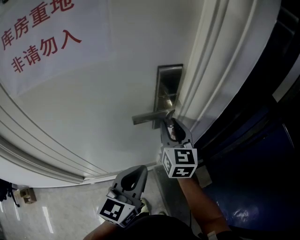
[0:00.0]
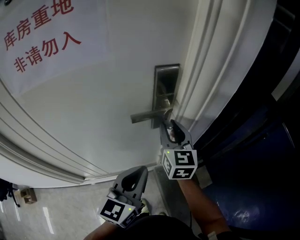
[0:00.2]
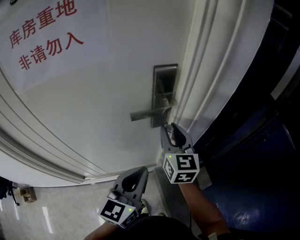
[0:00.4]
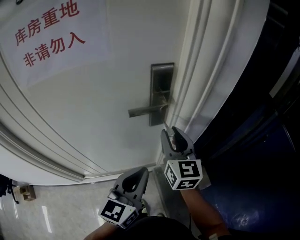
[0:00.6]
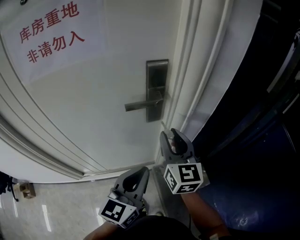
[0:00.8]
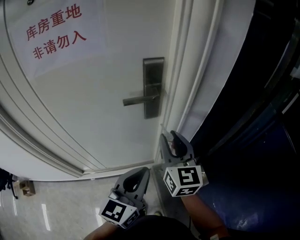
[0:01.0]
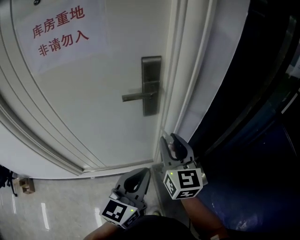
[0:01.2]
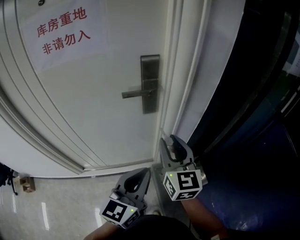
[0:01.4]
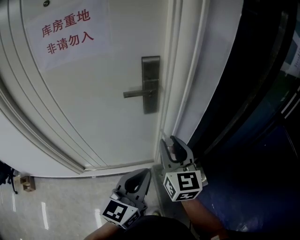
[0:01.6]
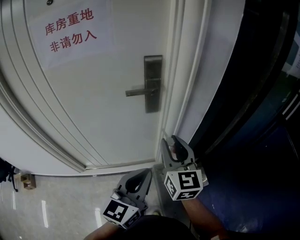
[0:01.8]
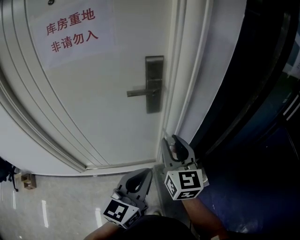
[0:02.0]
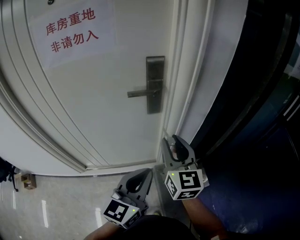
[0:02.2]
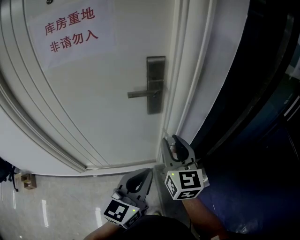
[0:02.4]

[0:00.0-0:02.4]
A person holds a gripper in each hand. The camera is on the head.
0:00.0 to 0:01.2: Both grippers travel together backward and to the right, about 15 cm.
0:01.2 to 0:02.4: The grippers stay close to where they were, moving slightly.

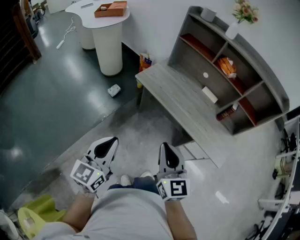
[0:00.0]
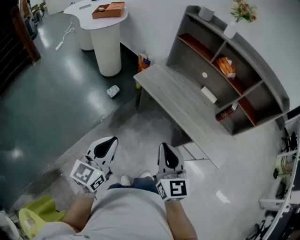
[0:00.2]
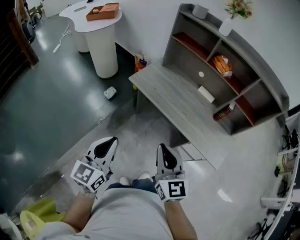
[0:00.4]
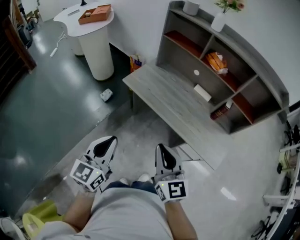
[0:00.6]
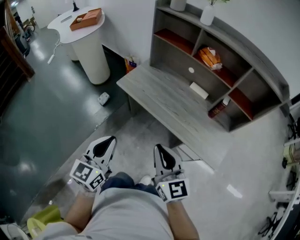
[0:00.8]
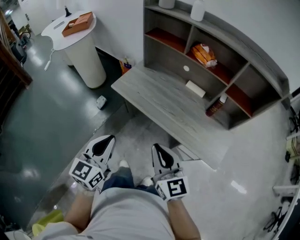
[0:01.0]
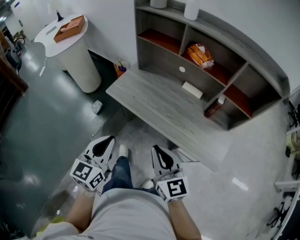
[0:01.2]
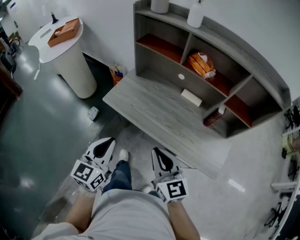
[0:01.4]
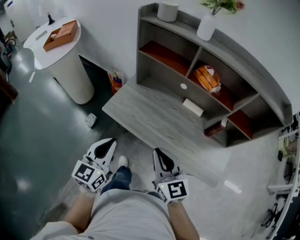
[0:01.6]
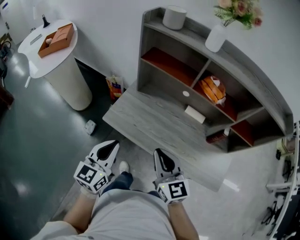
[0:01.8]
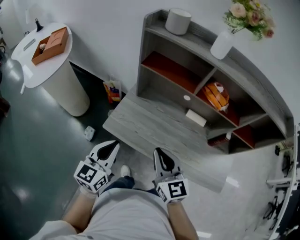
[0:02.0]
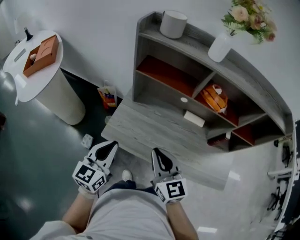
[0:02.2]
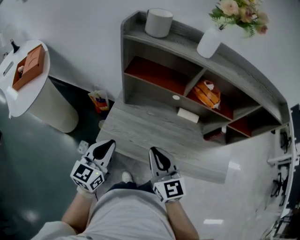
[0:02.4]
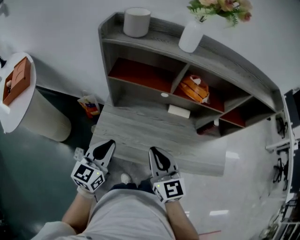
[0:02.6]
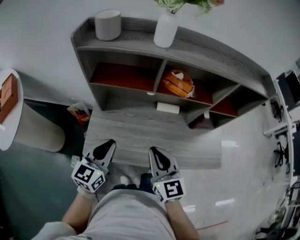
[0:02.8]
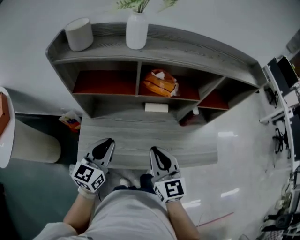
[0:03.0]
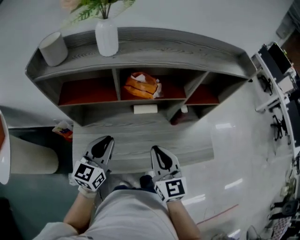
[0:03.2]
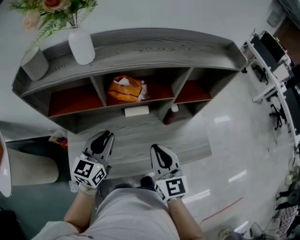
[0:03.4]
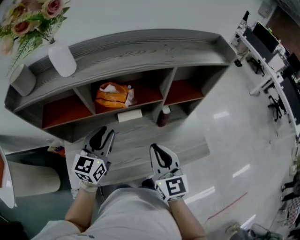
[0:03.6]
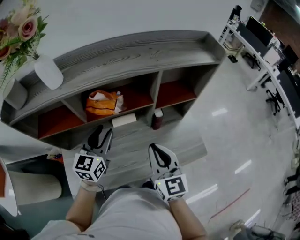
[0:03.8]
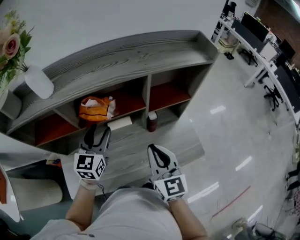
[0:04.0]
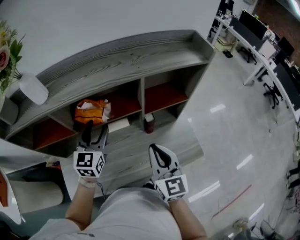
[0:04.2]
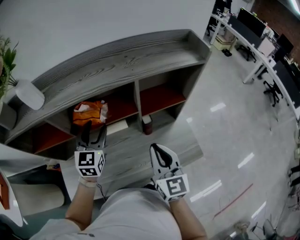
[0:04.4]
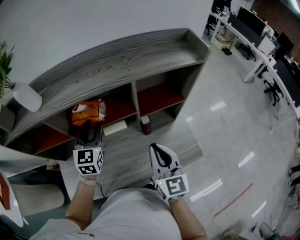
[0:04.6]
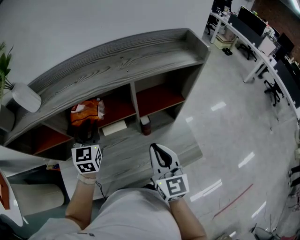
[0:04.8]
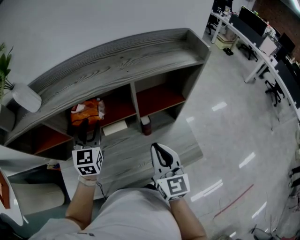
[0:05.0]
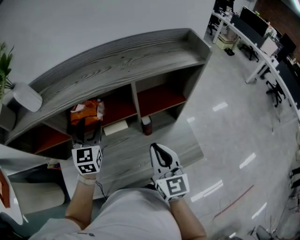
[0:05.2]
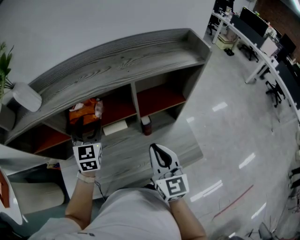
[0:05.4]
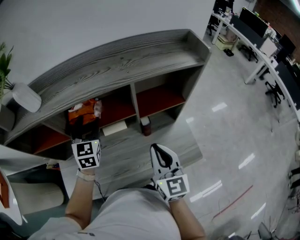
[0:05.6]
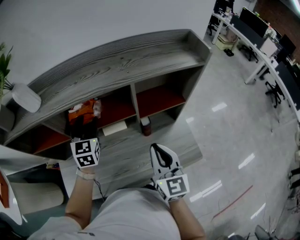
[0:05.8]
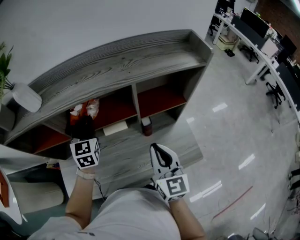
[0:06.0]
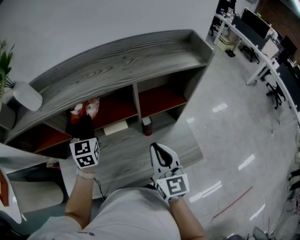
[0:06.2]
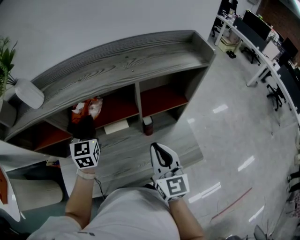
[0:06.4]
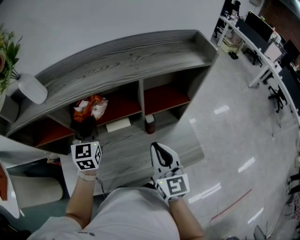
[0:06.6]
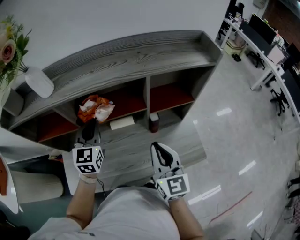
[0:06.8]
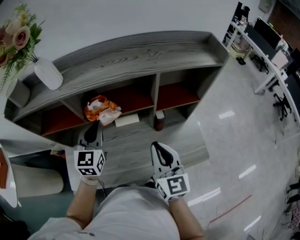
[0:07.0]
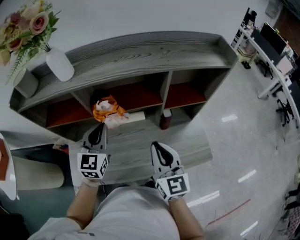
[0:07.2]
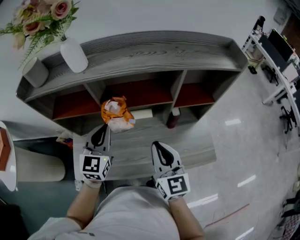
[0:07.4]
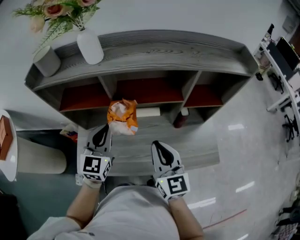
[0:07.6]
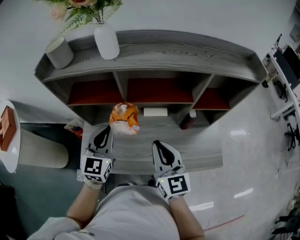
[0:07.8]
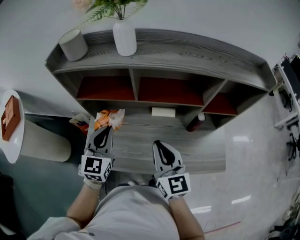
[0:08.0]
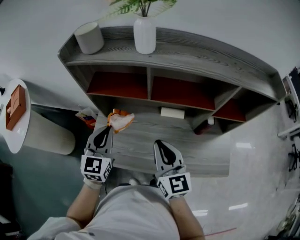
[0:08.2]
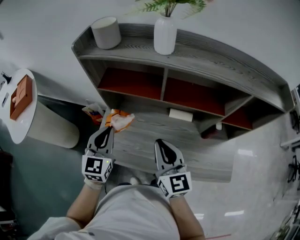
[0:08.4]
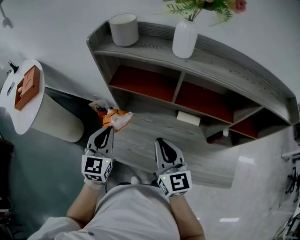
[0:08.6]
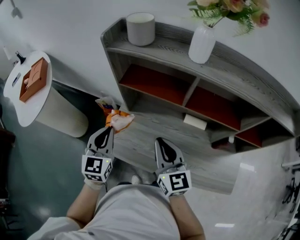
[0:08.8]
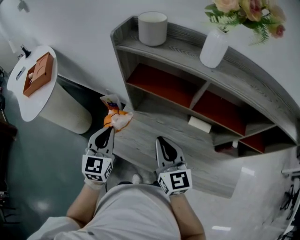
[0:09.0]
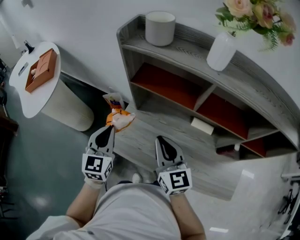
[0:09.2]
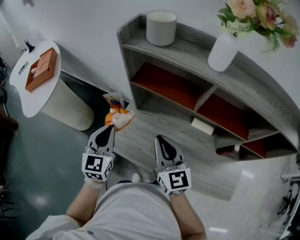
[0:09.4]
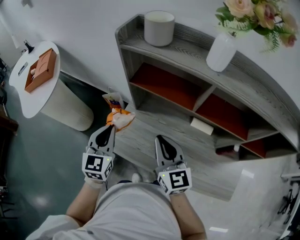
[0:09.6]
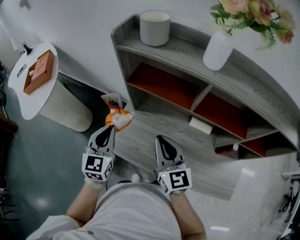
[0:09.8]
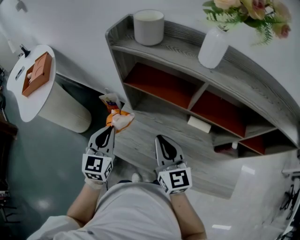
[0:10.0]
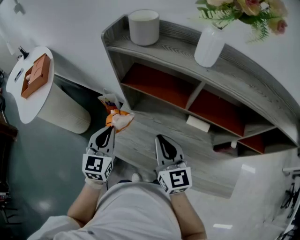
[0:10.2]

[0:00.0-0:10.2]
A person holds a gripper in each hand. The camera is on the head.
0:00.0 to 0:01.4: The two grippers go about 25 cm forward and to the right.
0:01.4 to 0:03.0: The right gripper shifts by some 20 cm, and rotates about 40 degrees, while the left gripper moves roughly 30 cm, and swivels some 30 degrees.
0:03.0 to 0:04.4: The left gripper goes approximately 30 cm forward and to the right, turns by some 20 degrees, and opens up, while the right gripper shifts roughly 25 cm to the right and forward, and rotates some 20 degrees.
0:04.4 to 0:05.8: The left gripper ends up approximately 5 cm from where it was, and closes and opens again.
0:05.8 to 0:07.2: The right gripper travels to the left by some 10 cm. The left gripper moves backward, approximately 10 cm, and closes its fingers.
0:07.2 to 0:08.8: The left gripper moves approximately 30 cm, and swivels about 30 degrees. The right gripper changes place by approximately 30 cm, and swivels about 30 degrees.
0:08.8 to 0:10.2: There are only small adjustments of the grippers.

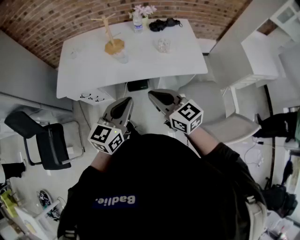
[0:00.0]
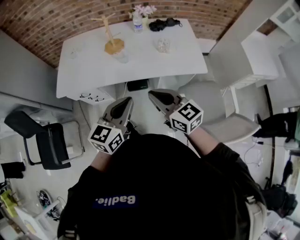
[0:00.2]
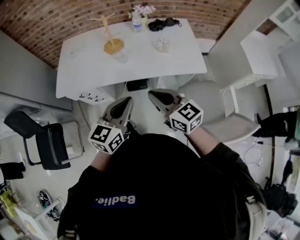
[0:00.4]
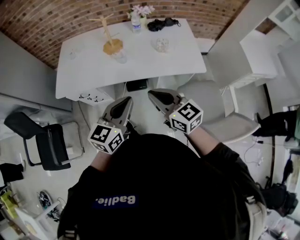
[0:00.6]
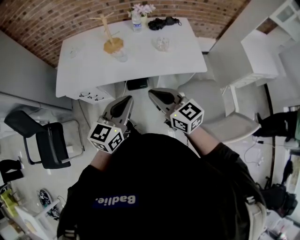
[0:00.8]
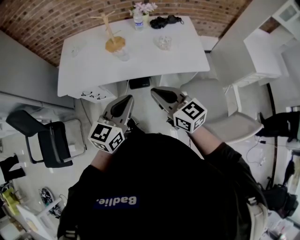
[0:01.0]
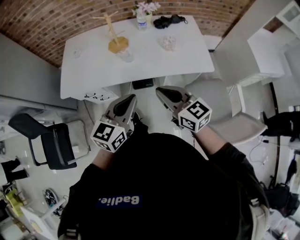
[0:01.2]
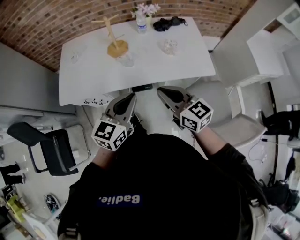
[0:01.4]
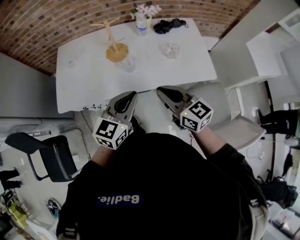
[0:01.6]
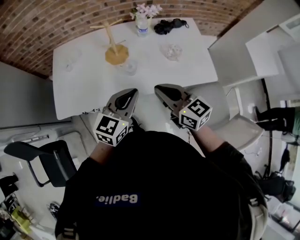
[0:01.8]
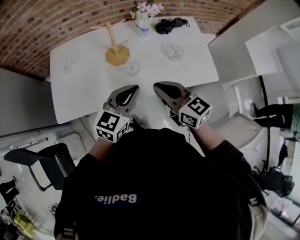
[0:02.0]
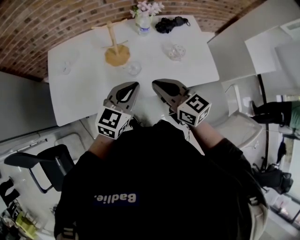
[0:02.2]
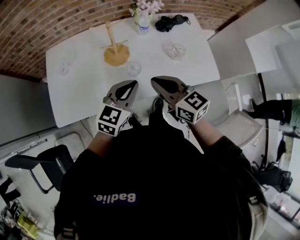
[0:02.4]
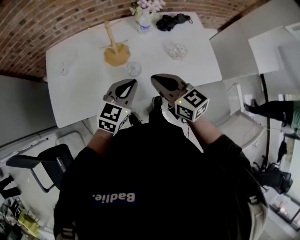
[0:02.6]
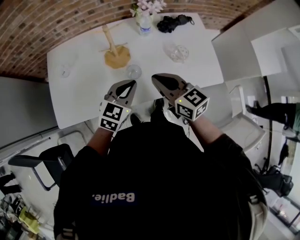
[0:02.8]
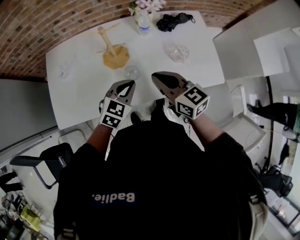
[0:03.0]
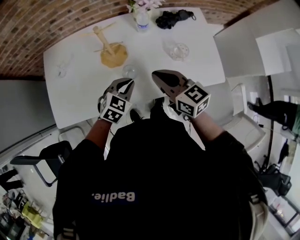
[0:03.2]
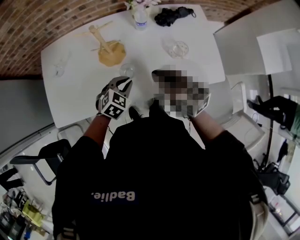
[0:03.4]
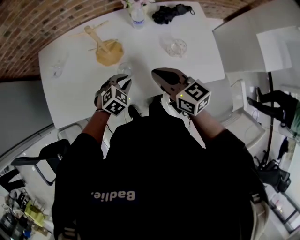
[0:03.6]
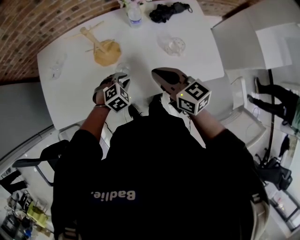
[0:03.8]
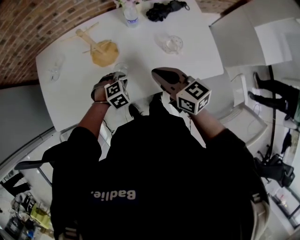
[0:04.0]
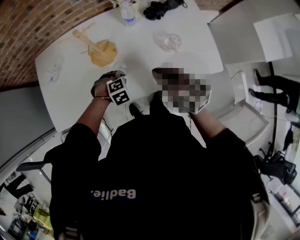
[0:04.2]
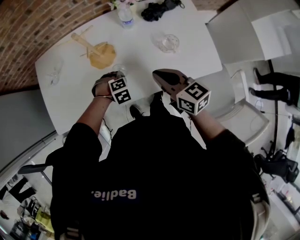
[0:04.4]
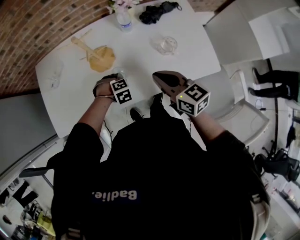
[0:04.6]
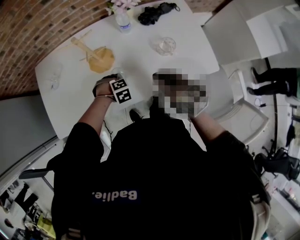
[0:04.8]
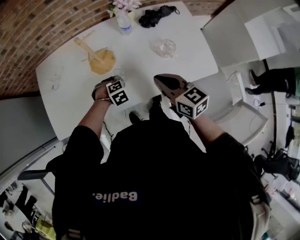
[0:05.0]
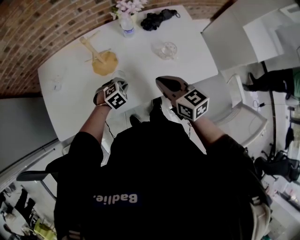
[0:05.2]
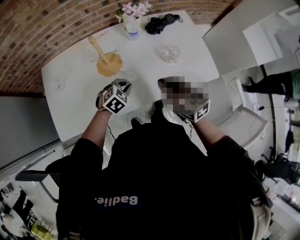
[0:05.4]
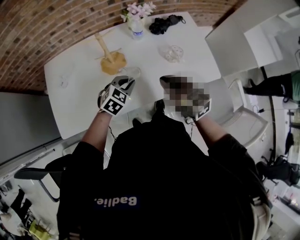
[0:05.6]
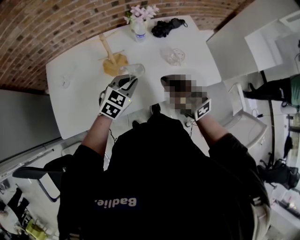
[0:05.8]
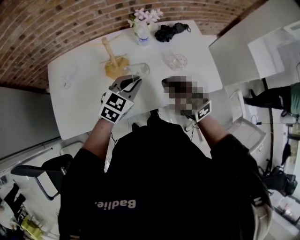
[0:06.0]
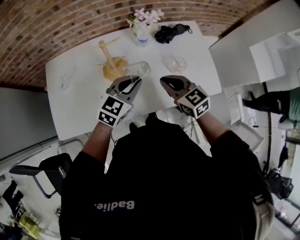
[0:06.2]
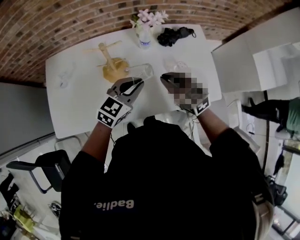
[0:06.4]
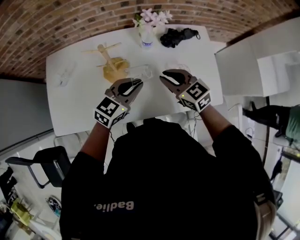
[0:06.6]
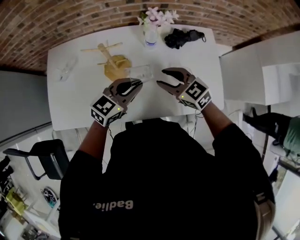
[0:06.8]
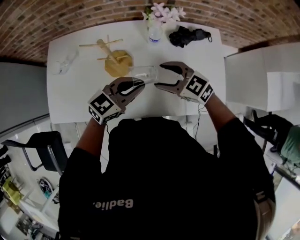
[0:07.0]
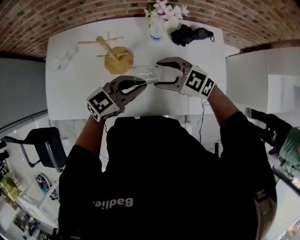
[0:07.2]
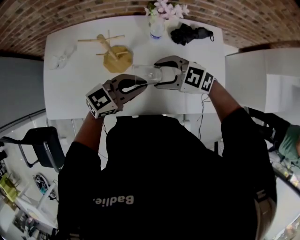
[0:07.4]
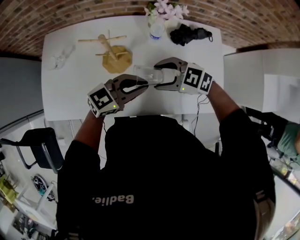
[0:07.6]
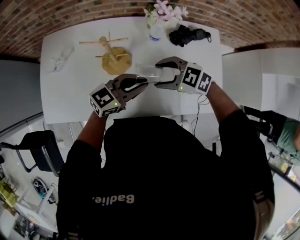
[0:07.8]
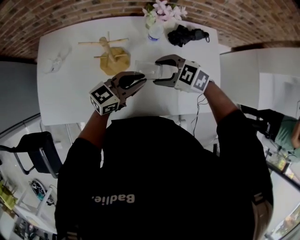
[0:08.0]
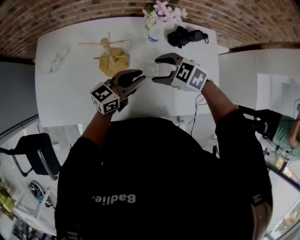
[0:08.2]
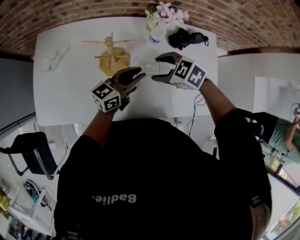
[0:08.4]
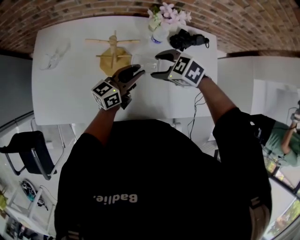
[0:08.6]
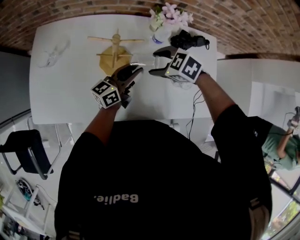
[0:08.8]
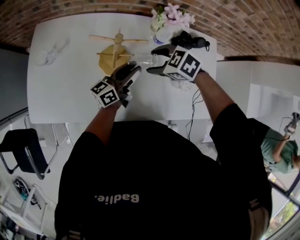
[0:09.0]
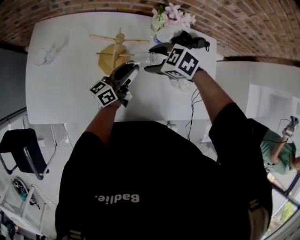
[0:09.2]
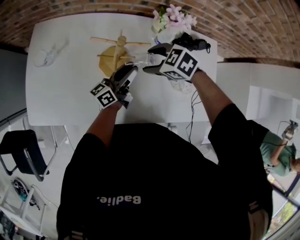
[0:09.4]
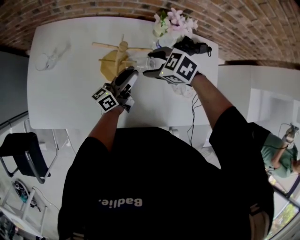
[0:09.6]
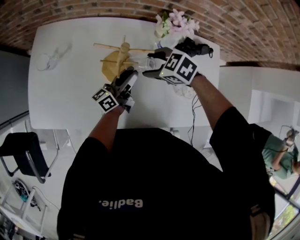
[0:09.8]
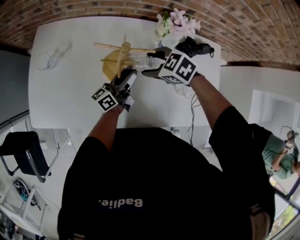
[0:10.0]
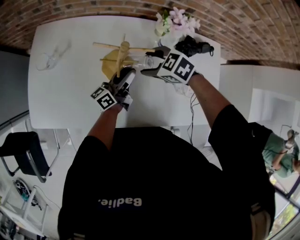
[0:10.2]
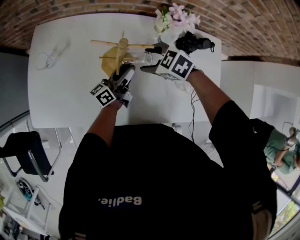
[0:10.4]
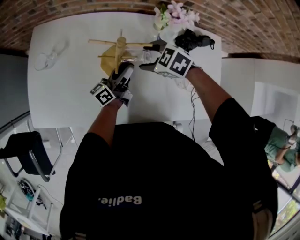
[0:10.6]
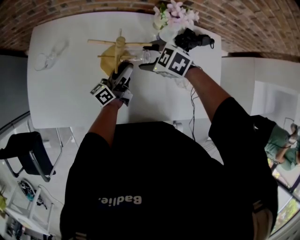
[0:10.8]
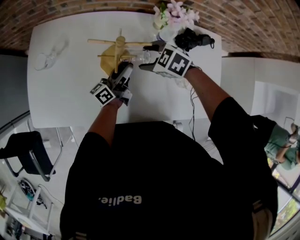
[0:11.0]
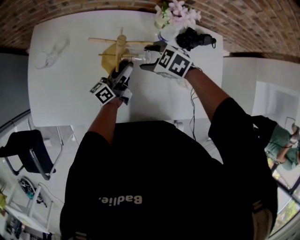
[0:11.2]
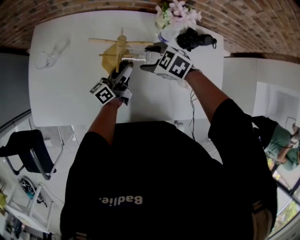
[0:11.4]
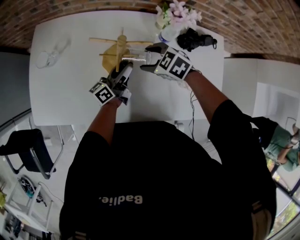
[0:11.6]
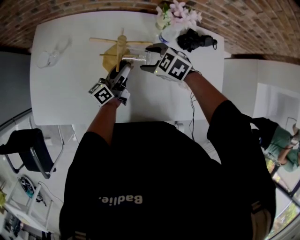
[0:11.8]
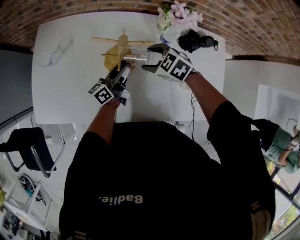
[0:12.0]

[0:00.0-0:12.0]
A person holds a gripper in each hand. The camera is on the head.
0:00.0 to 0:01.6: The two grippers go approximately 15 cm forward.
0:01.6 to 0:03.0: The left gripper heads forward and downward, covering some 20 cm, and swivels some 30 degrees; the right gripper heads forward, covering approximately 20 cm.
0:03.0 to 0:04.4: The right gripper moves about 10 cm, while the left gripper shifts approximately 20 cm downward, and tilts its fingers roughly 50 degrees downward.
0:04.4 to 0:06.0: The left gripper goes roughly 20 cm upward, and points its fingers roughly 50 degrees further upward.
0:06.0 to 0:07.6: The left gripper shifts by about 5 cm, and changes its angle by roughly 30 degrees; the right gripper shifts by about 10 cm, rotates about 60 degrees, and opens its fingers.
0:07.6 to 0:09.0: The left gripper changes place by about 15 cm, swivels roughly 50 degrees, and opens; the right gripper changes place by approximately 10 cm, and rotates approximately 20 degrees.
0:09.0 to 0:10.4: The right gripper changes place by some 5 cm; the left gripper moves some 5 cm.
0:10.4 to 0:12.0: The grippers make only small movements.
